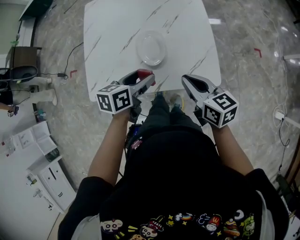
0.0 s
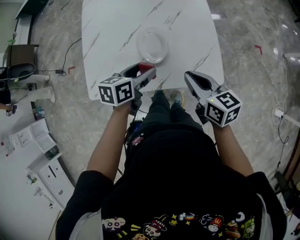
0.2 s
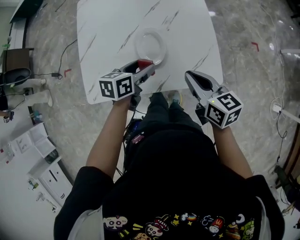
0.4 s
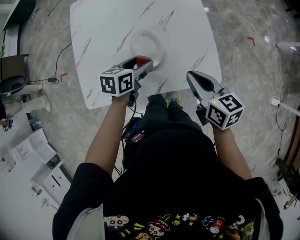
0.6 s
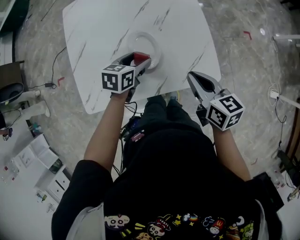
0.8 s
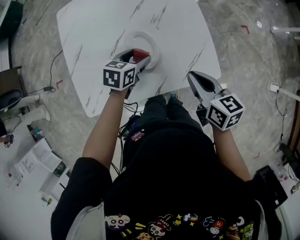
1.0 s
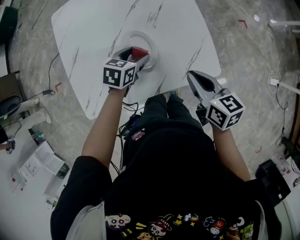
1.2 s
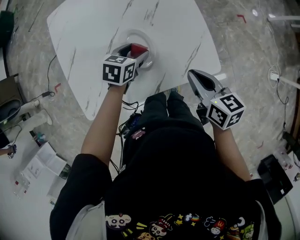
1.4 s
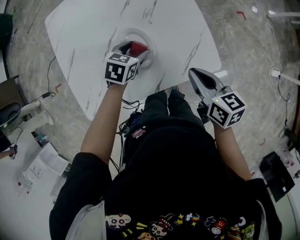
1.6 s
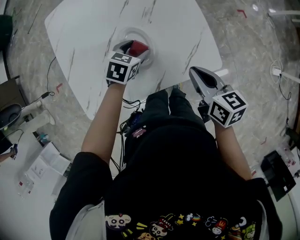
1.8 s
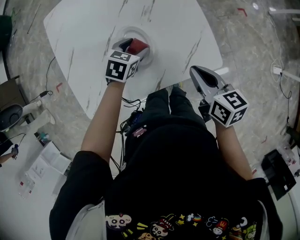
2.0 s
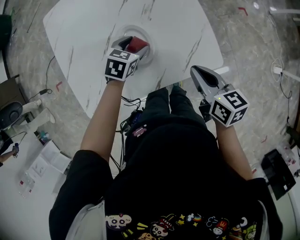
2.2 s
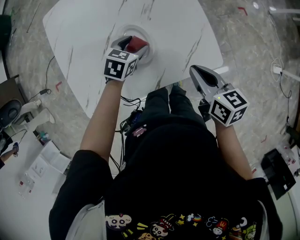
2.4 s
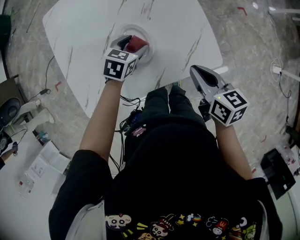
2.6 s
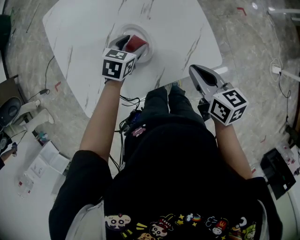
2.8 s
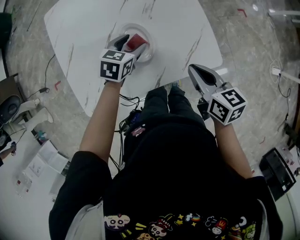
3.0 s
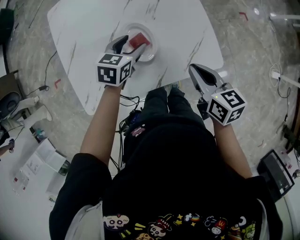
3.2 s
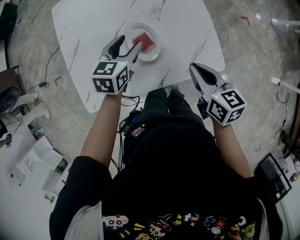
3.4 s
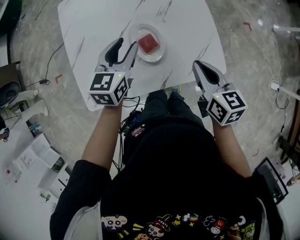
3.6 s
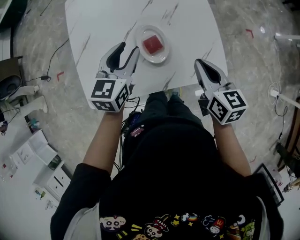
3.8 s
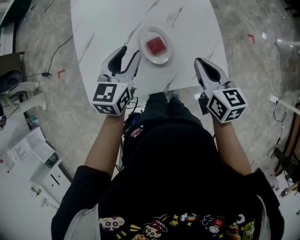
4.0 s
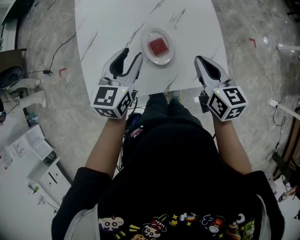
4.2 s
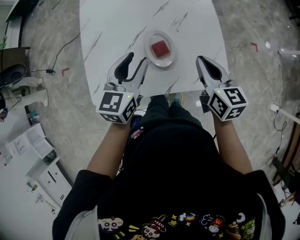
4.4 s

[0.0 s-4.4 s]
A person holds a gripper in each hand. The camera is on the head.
0.0 to 1.4 s: The right gripper rotates approximately 20 degrees. Meanwhile the left gripper shifts some 15 cm forward and downward, and rotates approximately 30 degrees.
1.4 to 3.0 s: There are only small adjustments of the grippers.
3.0 to 4.4 s: The right gripper is displaced forward and upward by about 10 cm. Meanwhile the left gripper heads upward, to the left and backward, covering approximately 20 cm, and rotates roughly 40 degrees.

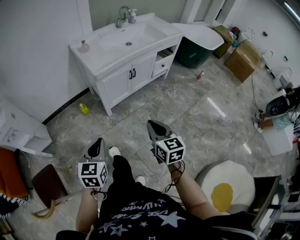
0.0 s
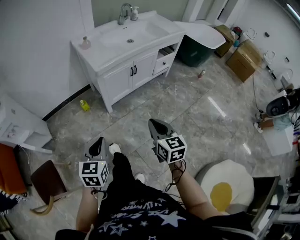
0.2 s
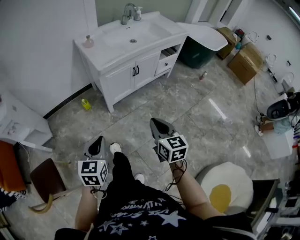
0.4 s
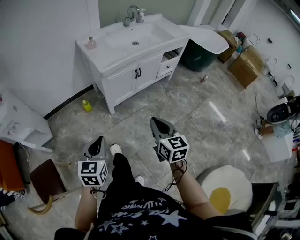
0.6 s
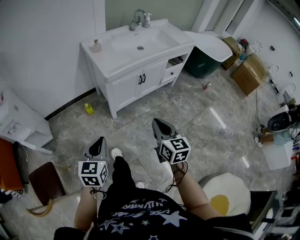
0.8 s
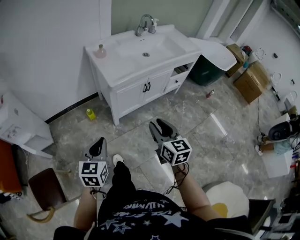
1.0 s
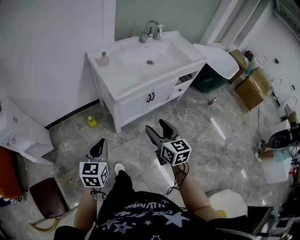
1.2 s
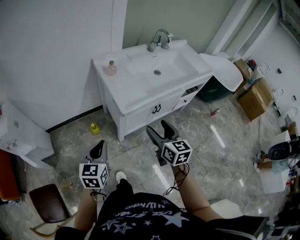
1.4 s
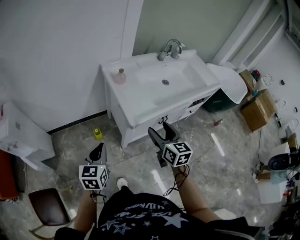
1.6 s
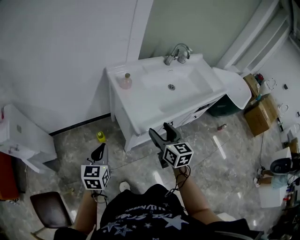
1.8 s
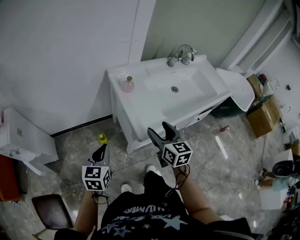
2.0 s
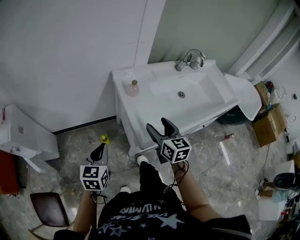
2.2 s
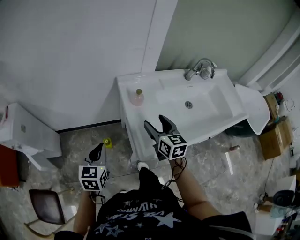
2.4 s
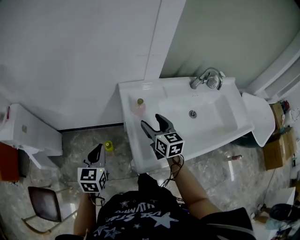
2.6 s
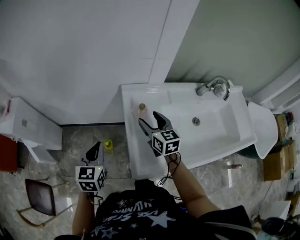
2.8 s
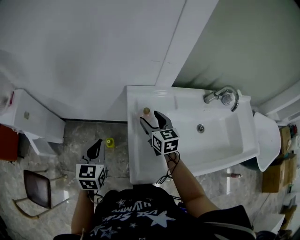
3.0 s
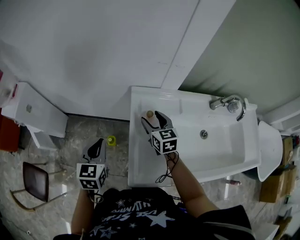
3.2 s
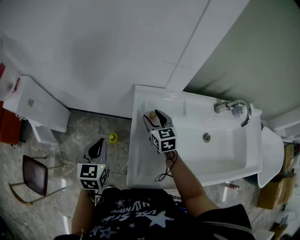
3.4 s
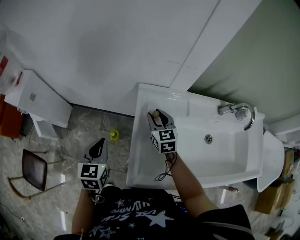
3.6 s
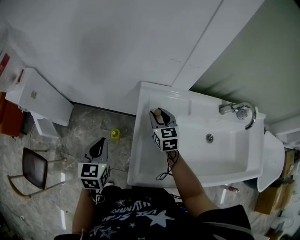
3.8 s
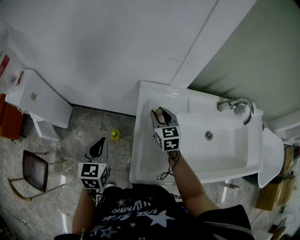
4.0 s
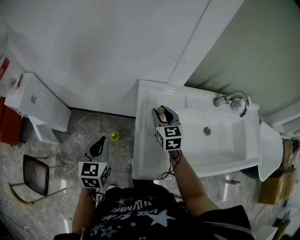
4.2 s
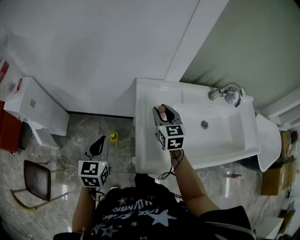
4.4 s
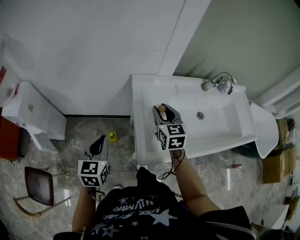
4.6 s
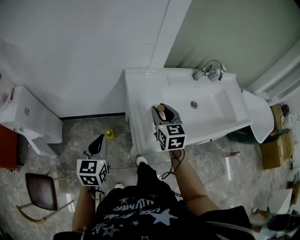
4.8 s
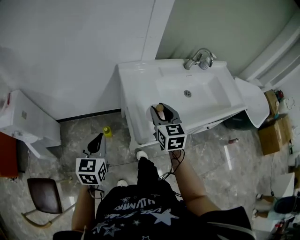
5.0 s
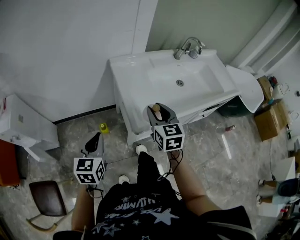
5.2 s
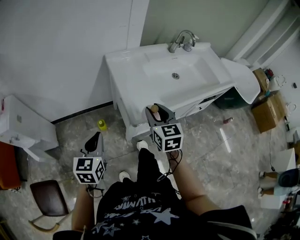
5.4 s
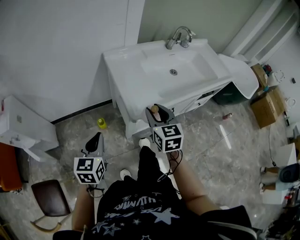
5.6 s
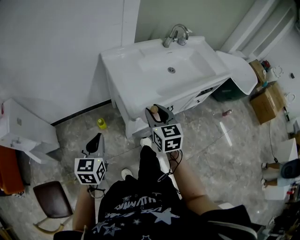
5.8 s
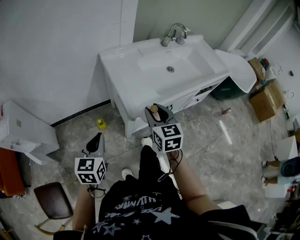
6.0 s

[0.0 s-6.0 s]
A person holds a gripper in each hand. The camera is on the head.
0.0 to 1.6 s: The left gripper travels forward and to the left by roughly 35 cm. The right gripper shifts approximately 35 cm forward, and opens up.
1.6 to 3.0 s: The right gripper moves approximately 40 cm, and rotates approximately 30 degrees. The left gripper ends up some 25 cm from where it was, and swivels about 20 degrees.
3.0 to 4.4 s: The right gripper closes; the left gripper ends up roughly 5 cm from where it was.
4.4 to 6.0 s: The right gripper goes roughly 30 cm backward, and changes its angle by approximately 20 degrees. Meanwhile the left gripper shifts about 20 cm backward, and turns by roughly 20 degrees.

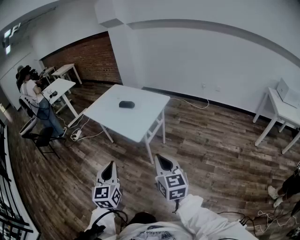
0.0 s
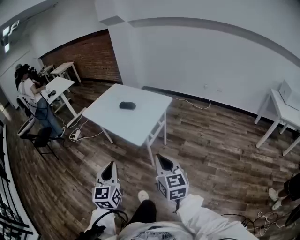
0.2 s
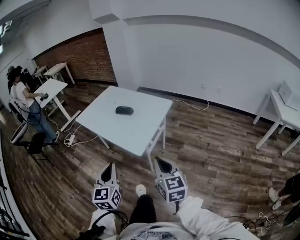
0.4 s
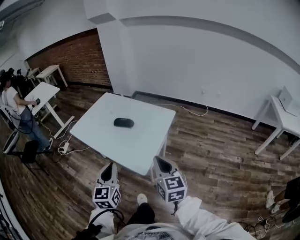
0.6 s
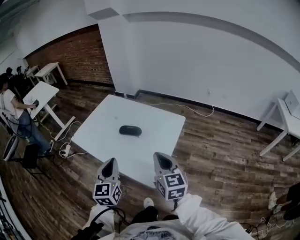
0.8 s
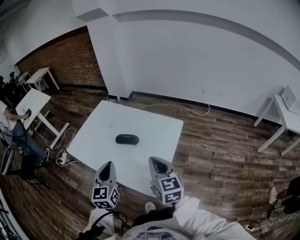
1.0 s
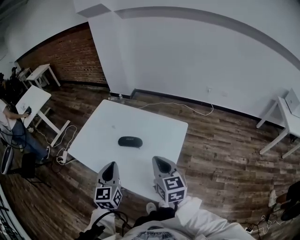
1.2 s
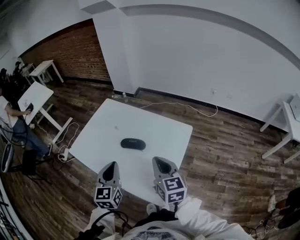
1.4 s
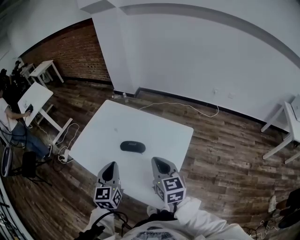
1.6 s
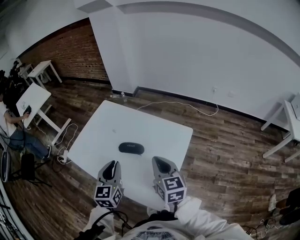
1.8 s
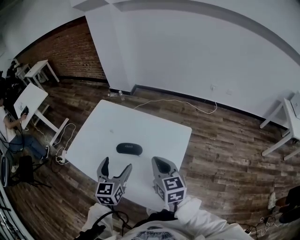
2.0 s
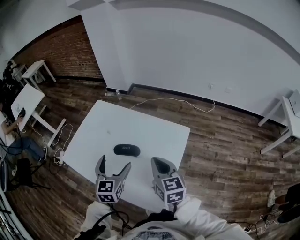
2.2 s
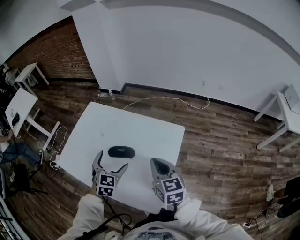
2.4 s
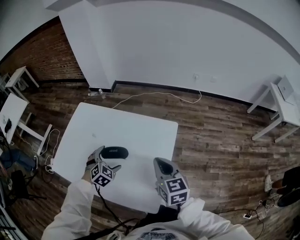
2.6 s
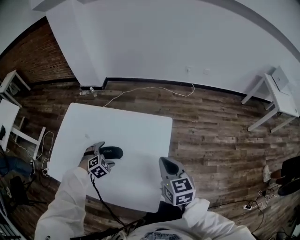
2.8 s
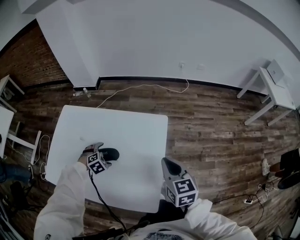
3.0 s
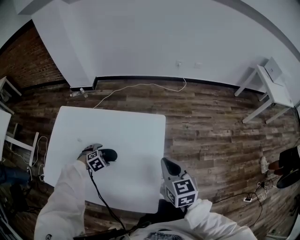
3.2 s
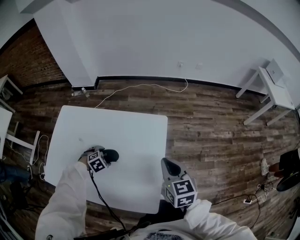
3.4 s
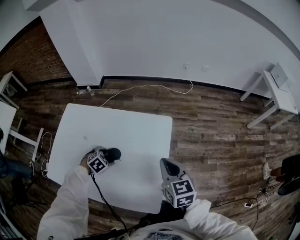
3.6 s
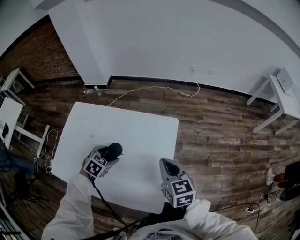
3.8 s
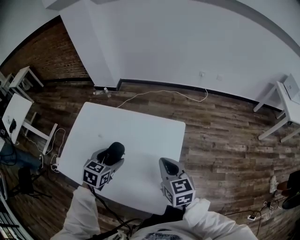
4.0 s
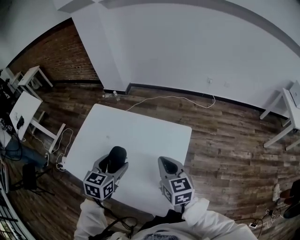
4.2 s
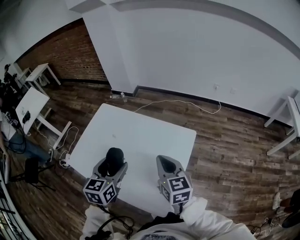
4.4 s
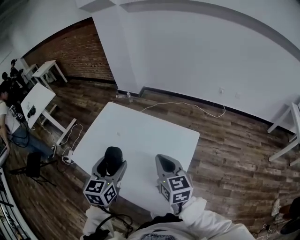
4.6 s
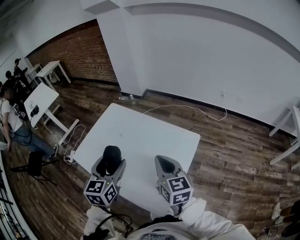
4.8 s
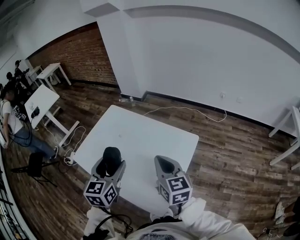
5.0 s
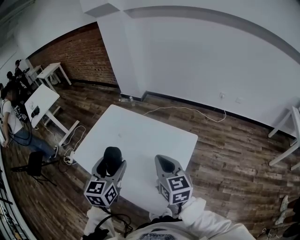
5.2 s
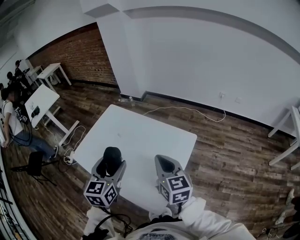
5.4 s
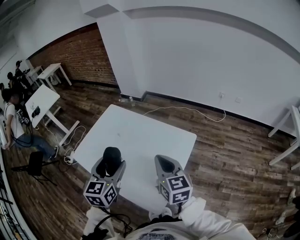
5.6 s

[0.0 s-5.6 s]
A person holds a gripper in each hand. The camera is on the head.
0.0 to 1.4 s: Both grippers are carried forward, approximately 50 cm.
1.4 to 2.8 s: The right gripper travels to the right and downward by roughly 10 cm, while the left gripper shifts approximately 30 cm downward and forward, angles its fingers downward, by about 50 degrees, and opens up.
2.8 to 4.2 s: The left gripper goes some 20 cm upward, and rolls counterclockwise, seen from behind, by about 50 degrees; the right gripper moves about 5 cm.
4.2 to 5.6 s: The right gripper travels upward by some 5 cm; the left gripper shifts some 10 cm upward and backward, and rotates approximately 30 degrees.

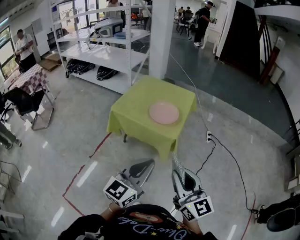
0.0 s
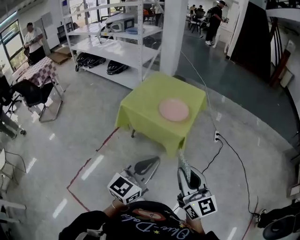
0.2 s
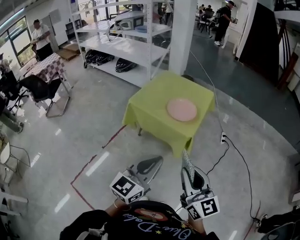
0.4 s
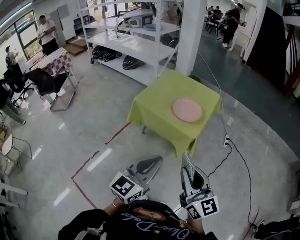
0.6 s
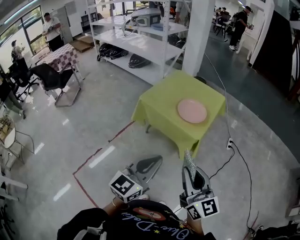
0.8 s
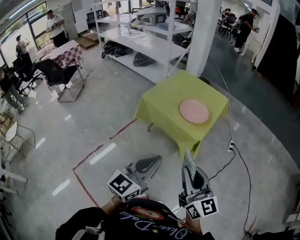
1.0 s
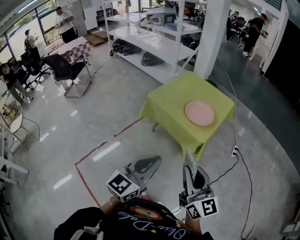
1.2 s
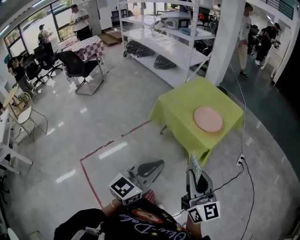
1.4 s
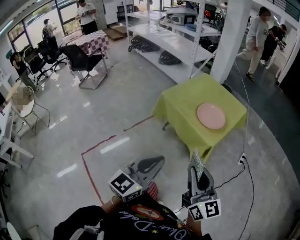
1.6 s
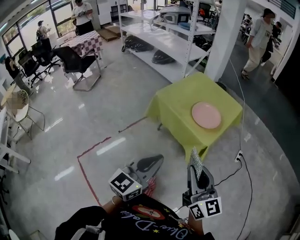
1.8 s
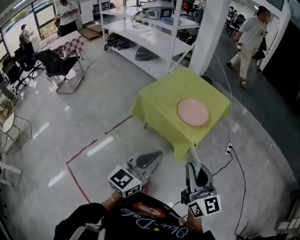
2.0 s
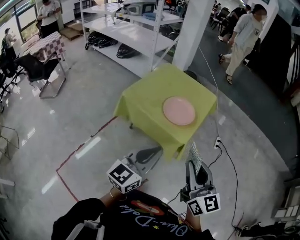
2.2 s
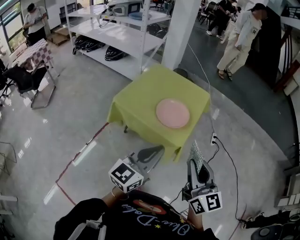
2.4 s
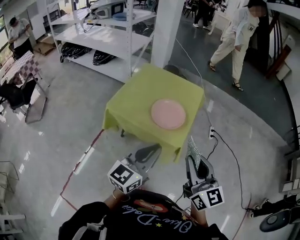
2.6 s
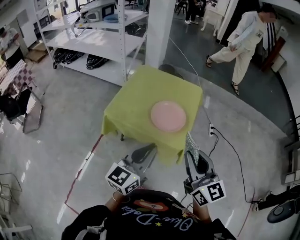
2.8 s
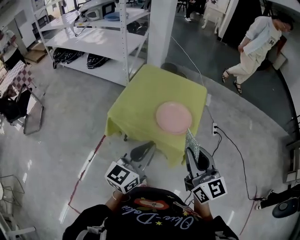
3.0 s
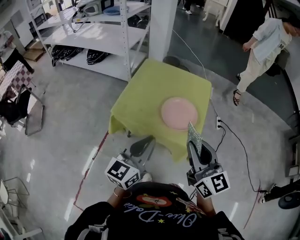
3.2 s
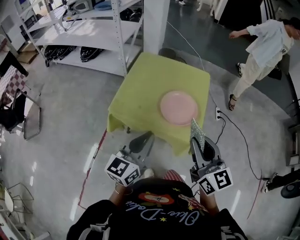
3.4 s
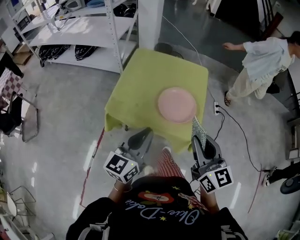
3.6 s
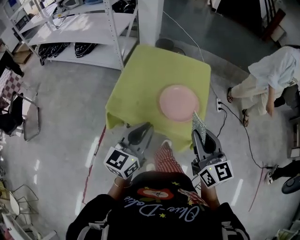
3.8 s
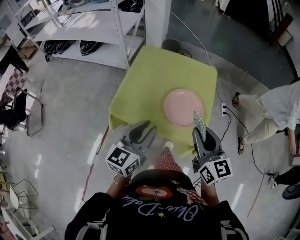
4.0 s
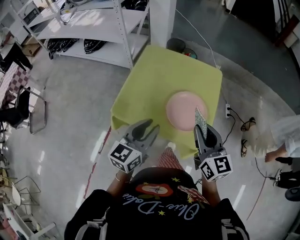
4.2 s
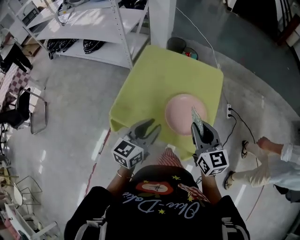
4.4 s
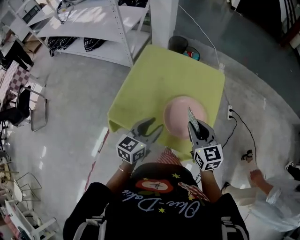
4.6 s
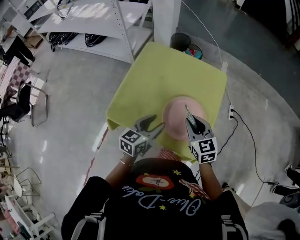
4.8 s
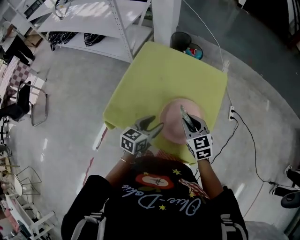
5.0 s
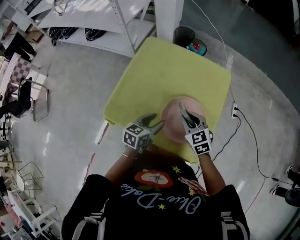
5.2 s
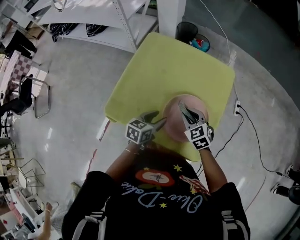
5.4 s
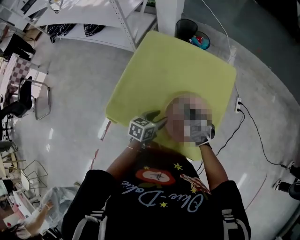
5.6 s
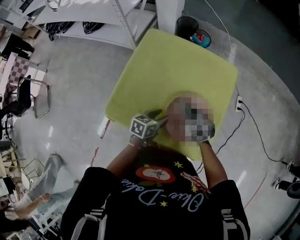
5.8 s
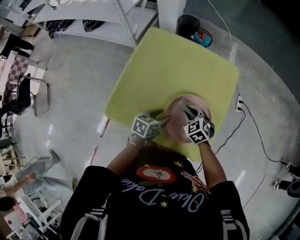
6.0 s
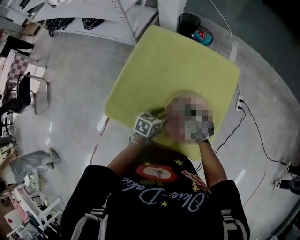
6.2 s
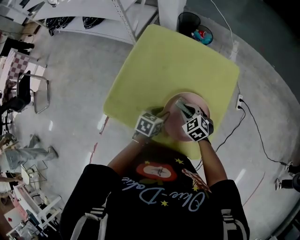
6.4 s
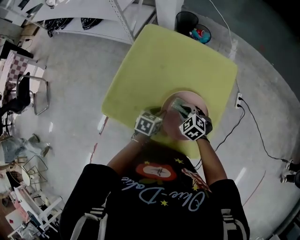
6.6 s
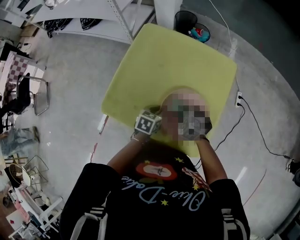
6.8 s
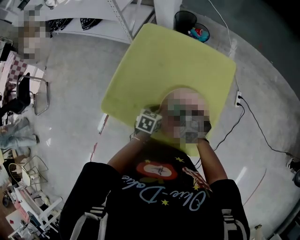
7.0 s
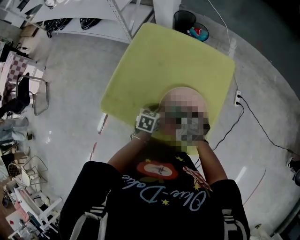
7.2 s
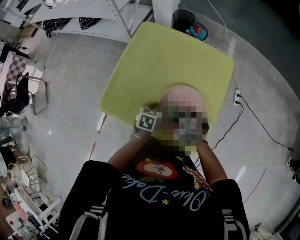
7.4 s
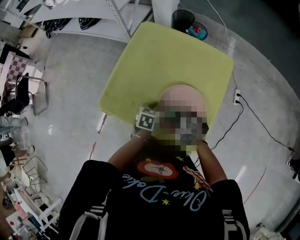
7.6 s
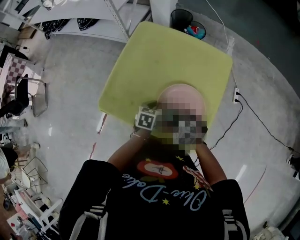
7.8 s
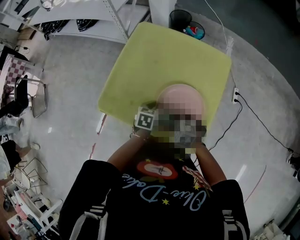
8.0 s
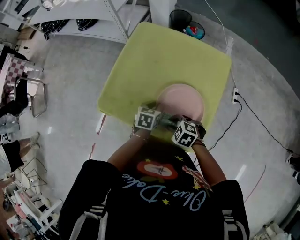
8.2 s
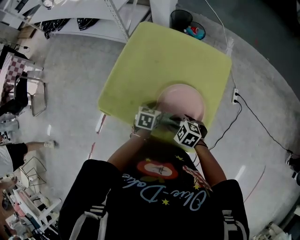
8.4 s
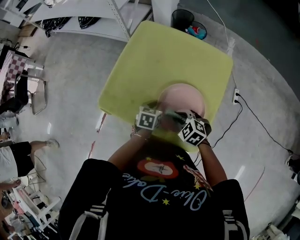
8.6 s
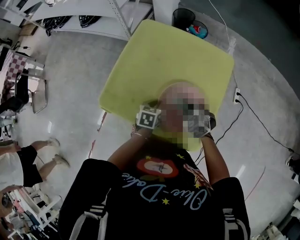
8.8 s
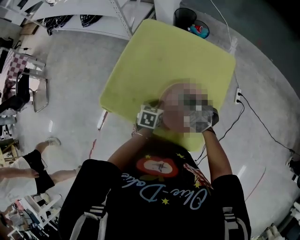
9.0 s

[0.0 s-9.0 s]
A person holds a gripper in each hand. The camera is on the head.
0.0 to 1.6 s: The left gripper shifts by roughly 5 cm.
1.6 to 3.0 s: The grippers both shift forward by roughly 30 cm. The right gripper changes its angle by about 20 degrees. Meanwhile the left gripper rotates some 20 degrees.
3.0 to 4.4 s: The grippers both shift forward and downward by about 25 cm. The left gripper opens up.
4.4 to 6.0 s: Both grippers move downward and forward, about 30 cm. The left gripper swivels approximately 30 degrees. The right gripper points its fingers some 40 degrees further downward.
6.0 to 7.6 s: The left gripper closes its fingers; the right gripper moves backward, about 10 cm, and changes its angle by some 30 degrees.
7.6 to 9.0 s: The right gripper moves forward and to the right, some 10 cm.
